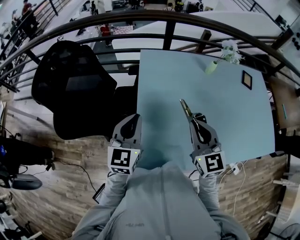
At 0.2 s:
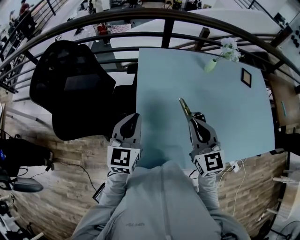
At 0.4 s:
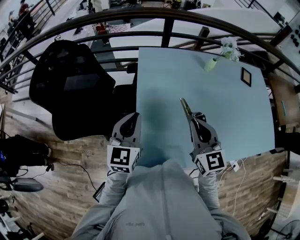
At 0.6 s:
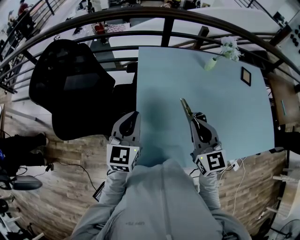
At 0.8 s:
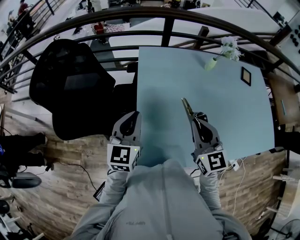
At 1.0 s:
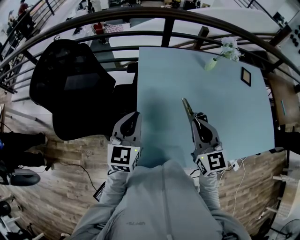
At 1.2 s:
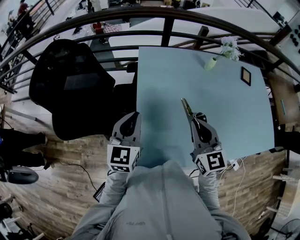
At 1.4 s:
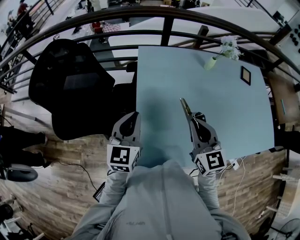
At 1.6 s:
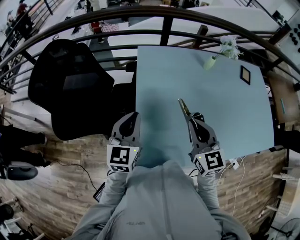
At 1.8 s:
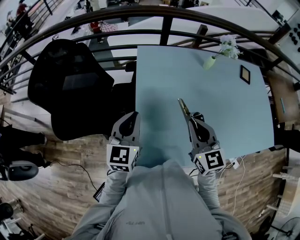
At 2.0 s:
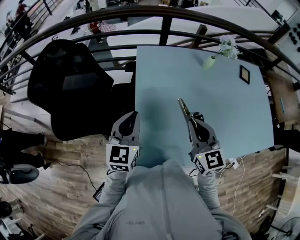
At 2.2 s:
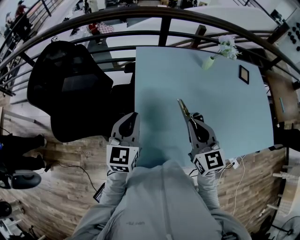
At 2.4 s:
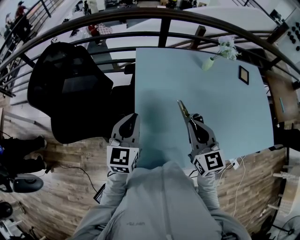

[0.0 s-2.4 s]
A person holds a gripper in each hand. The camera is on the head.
0.0 to 1.2 s: Neither gripper changes place.
1.2 to 2.4 s: Both grippers stay put.

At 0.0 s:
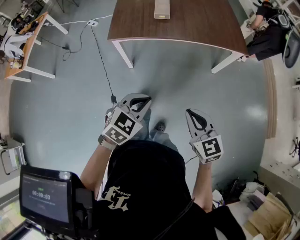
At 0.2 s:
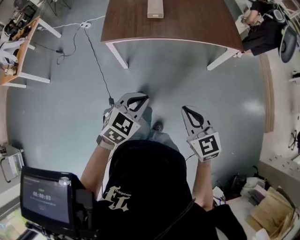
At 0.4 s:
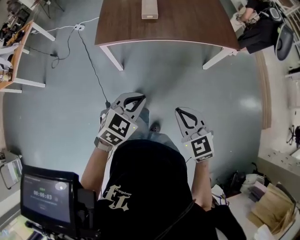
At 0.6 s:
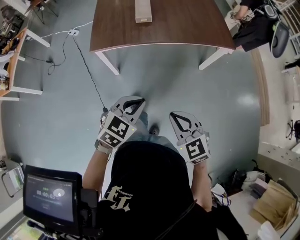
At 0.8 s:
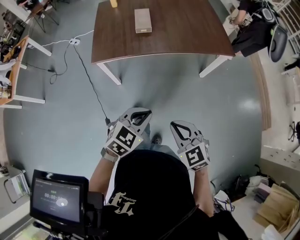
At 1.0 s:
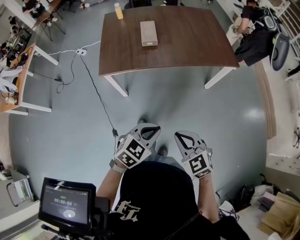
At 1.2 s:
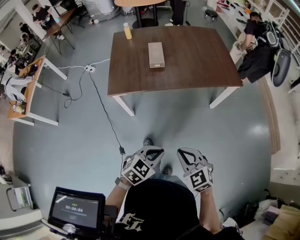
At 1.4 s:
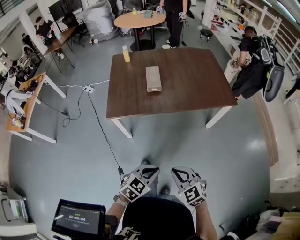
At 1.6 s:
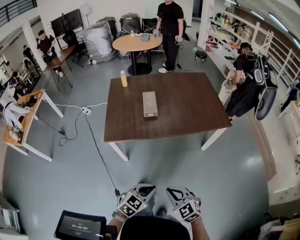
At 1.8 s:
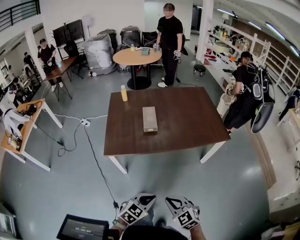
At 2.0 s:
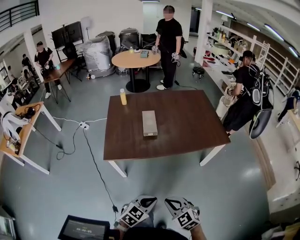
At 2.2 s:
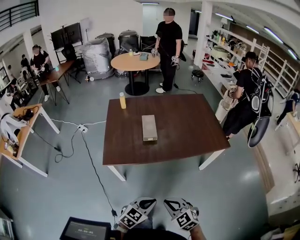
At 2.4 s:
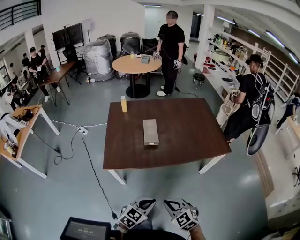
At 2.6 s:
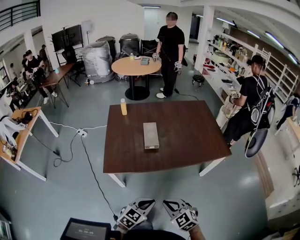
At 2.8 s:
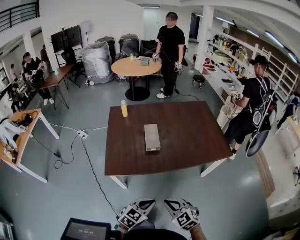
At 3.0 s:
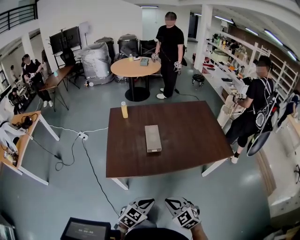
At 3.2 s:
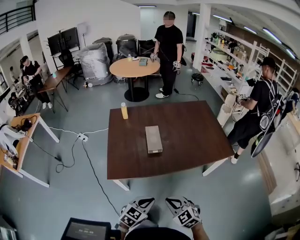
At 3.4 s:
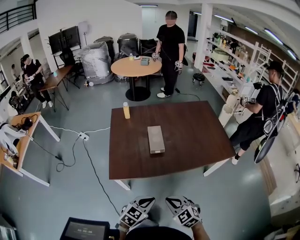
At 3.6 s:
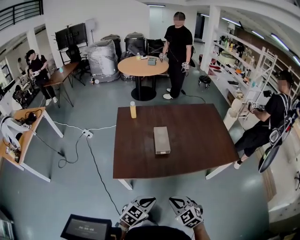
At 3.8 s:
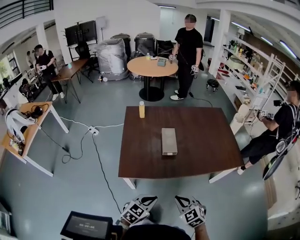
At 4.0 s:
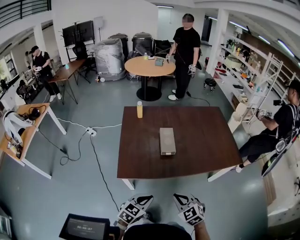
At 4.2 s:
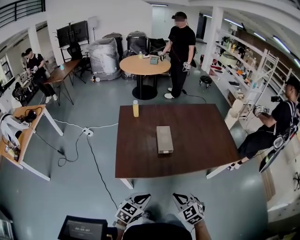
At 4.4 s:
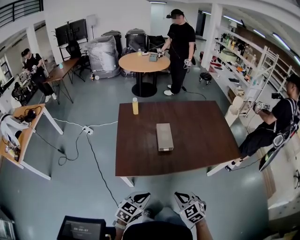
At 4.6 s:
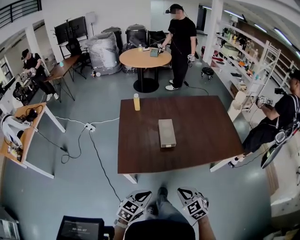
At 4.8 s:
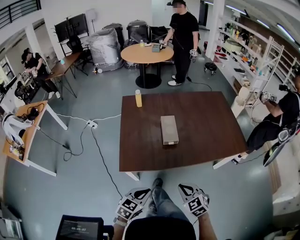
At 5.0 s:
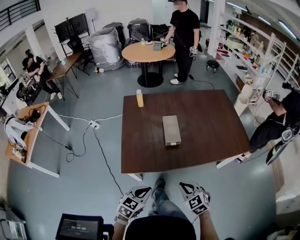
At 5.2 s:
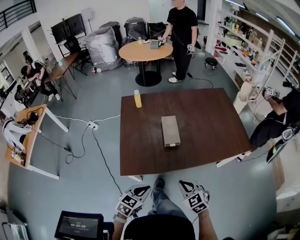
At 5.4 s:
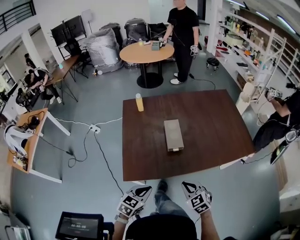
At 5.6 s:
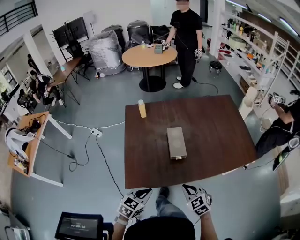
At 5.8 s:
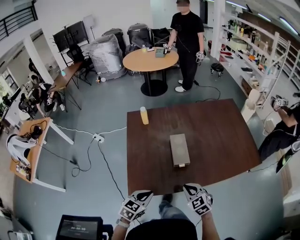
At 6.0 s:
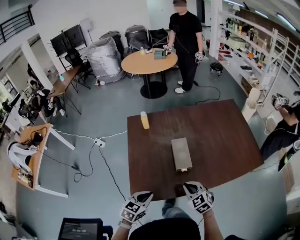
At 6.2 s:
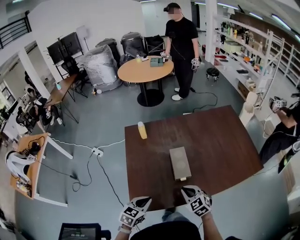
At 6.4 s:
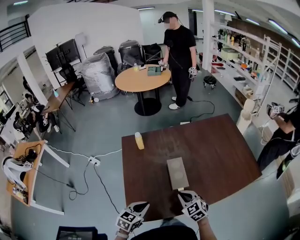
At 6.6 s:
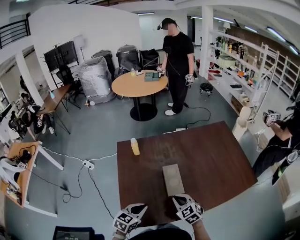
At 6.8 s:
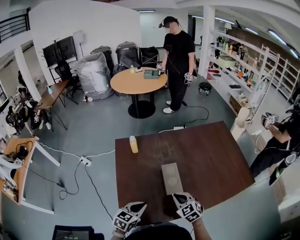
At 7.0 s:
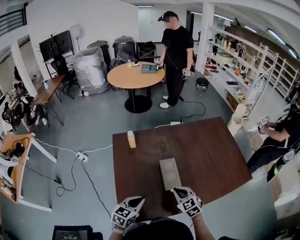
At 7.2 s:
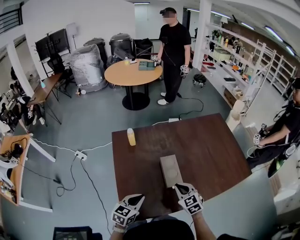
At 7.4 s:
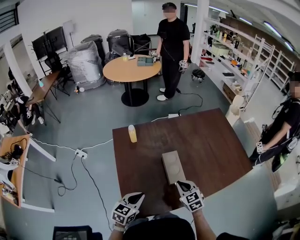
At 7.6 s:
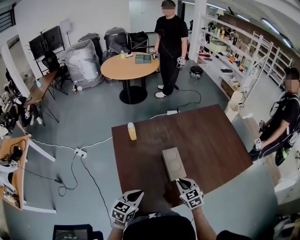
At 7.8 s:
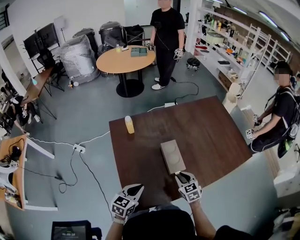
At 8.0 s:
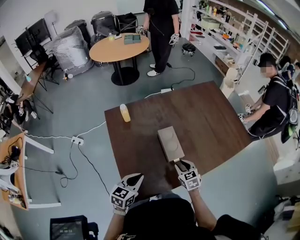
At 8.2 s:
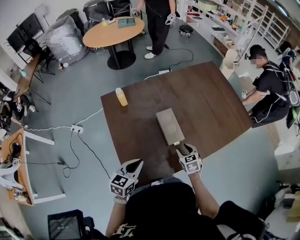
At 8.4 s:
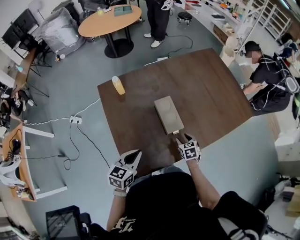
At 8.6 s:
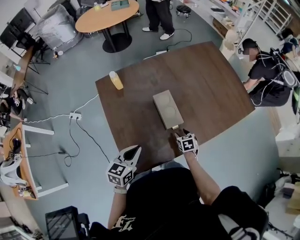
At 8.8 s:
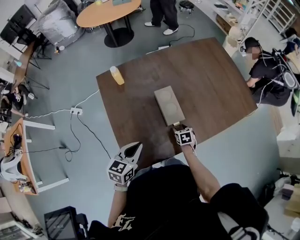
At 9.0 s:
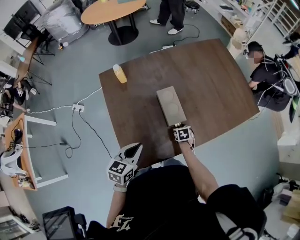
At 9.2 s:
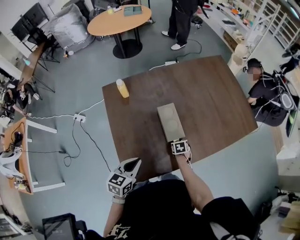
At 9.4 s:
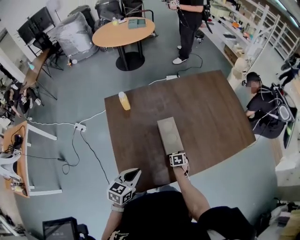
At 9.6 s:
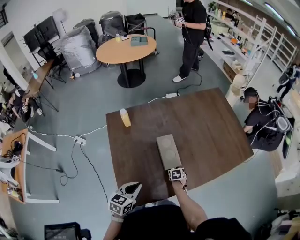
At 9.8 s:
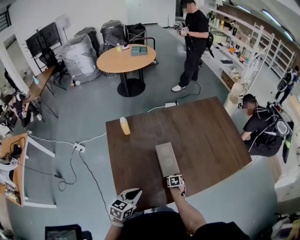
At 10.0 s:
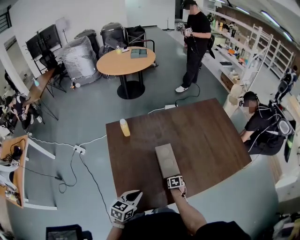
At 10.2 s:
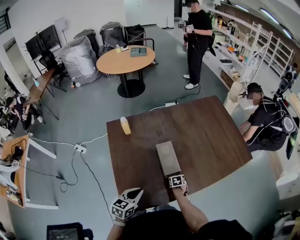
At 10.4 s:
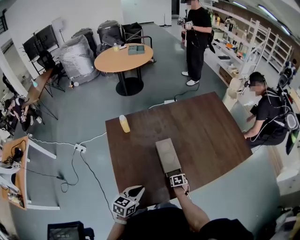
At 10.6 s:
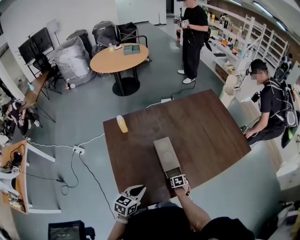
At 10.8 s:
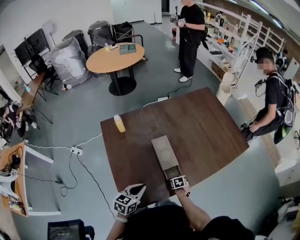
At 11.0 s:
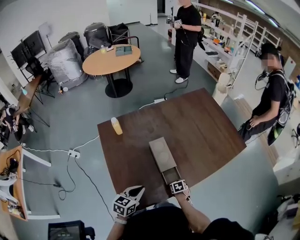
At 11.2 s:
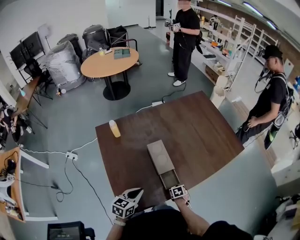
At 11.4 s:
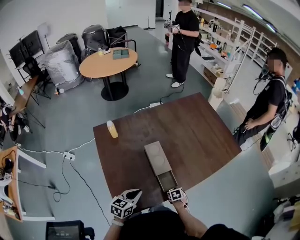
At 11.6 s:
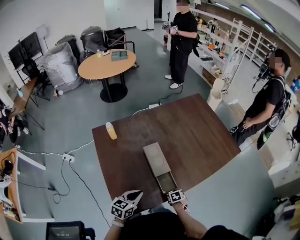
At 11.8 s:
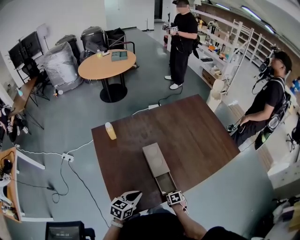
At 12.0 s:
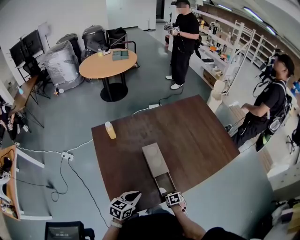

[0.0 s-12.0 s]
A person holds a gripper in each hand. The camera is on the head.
0.0 to 1.6 s: The right gripper travels forward and to the left by some 15 cm. Meanwhile the left gripper moves forward, roughly 10 cm.
1.6 to 3.0 s: Both grippers travel together forward and to the left, roughly 20 cm.
3.0 to 4.4 s: The left gripper goes about 10 cm to the left. The right gripper shifts by some 5 cm.
4.4 to 6.0 s: The left gripper goes about 25 cm forward and to the left; the right gripper travels forward by approximately 25 cm.
6.0 to 7.6 s: The left gripper shifts about 15 cm forward and to the left; the right gripper heads forward, covering some 10 cm.
7.6 to 9.0 s: The right gripper goes about 25 cm downward, rotates some 40 degrees, and opens its fingers.
9.0 to 10.4 s: There are only small adjustments of the grippers.
10.4 to 12.0 s: The right gripper heads backward, covering approximately 10 cm.

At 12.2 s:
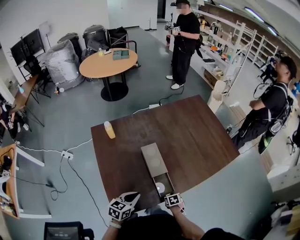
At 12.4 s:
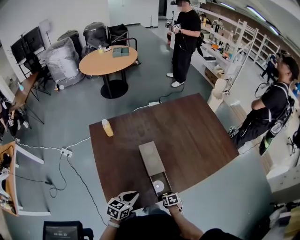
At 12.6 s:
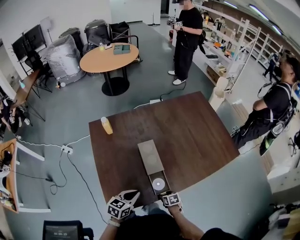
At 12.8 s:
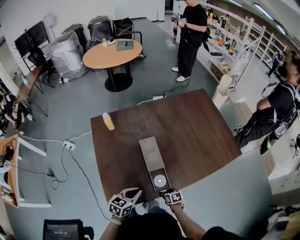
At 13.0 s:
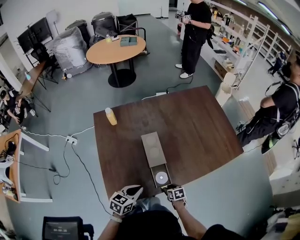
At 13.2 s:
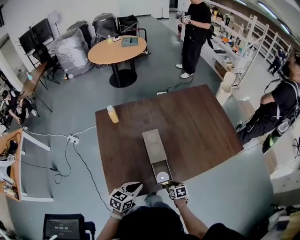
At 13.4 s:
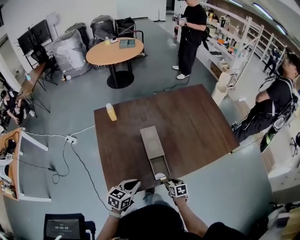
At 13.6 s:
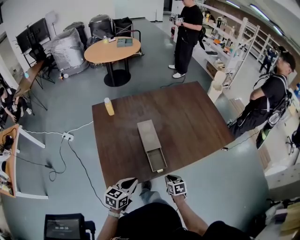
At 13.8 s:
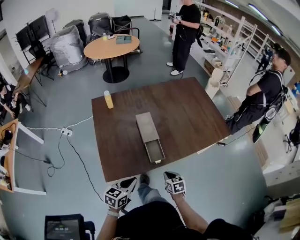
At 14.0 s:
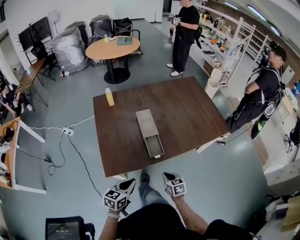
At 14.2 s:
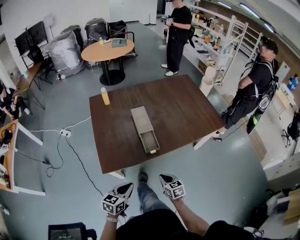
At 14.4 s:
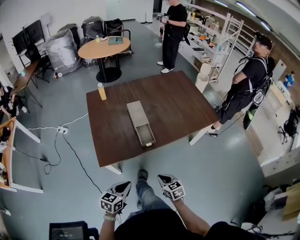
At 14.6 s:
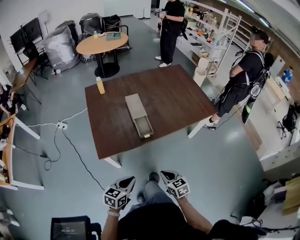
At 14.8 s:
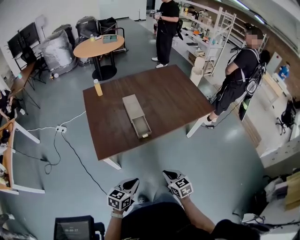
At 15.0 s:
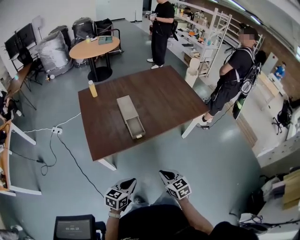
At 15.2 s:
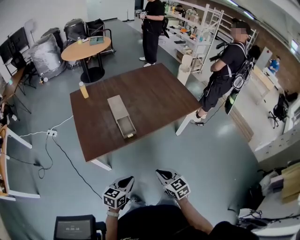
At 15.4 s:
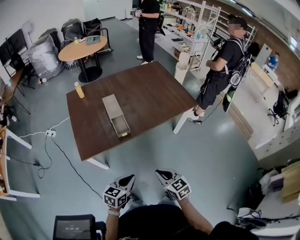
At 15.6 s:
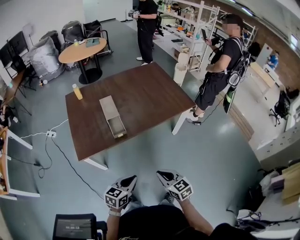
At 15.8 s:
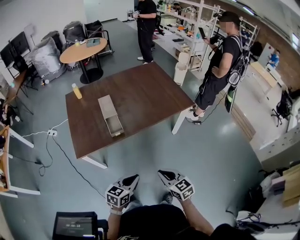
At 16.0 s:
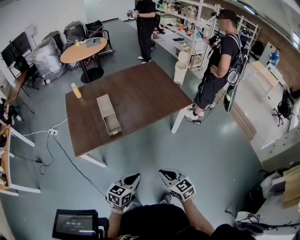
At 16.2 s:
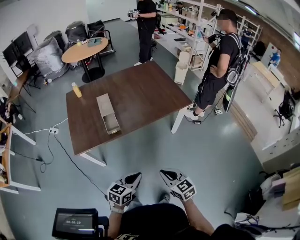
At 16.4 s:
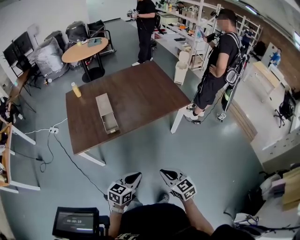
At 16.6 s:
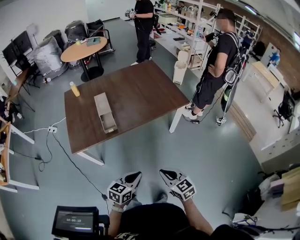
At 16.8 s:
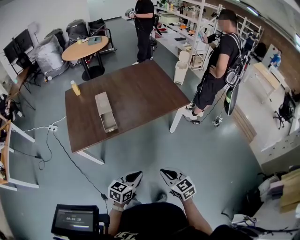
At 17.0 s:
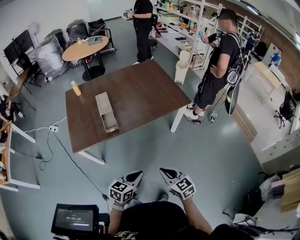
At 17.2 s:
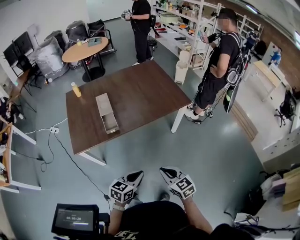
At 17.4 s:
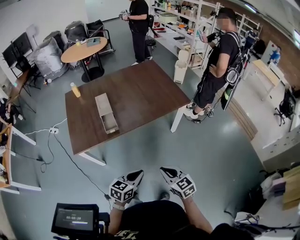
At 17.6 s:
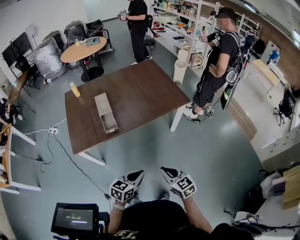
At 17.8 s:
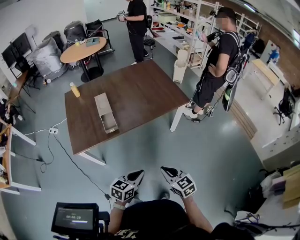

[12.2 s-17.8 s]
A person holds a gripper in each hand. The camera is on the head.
12.2 to 13.6 s: The right gripper travels upward and backward by about 15 cm, and closes up. The left gripper goes approximately 10 cm backward.
13.6 to 15.0 s: The left gripper shifts approximately 30 cm backward and to the right. Meanwhile the right gripper travels backward and upward by roughly 30 cm, and rotates about 20 degrees.
15.0 to 16.4 s: The two grippers go about 25 cm to the right.
16.4 to 17.8 s: There are only small adjustments of the grippers.

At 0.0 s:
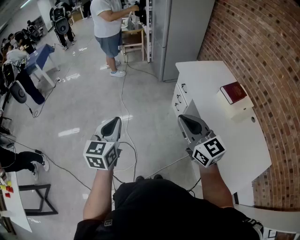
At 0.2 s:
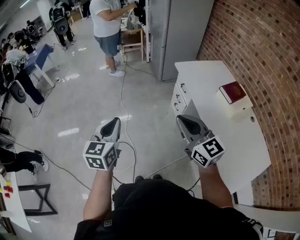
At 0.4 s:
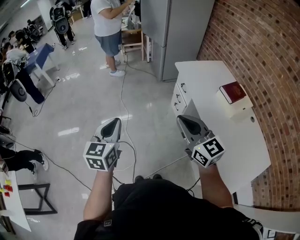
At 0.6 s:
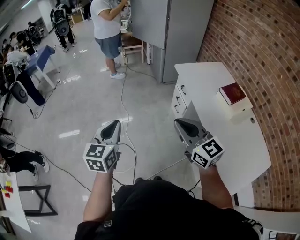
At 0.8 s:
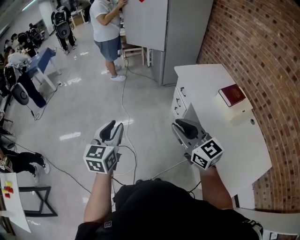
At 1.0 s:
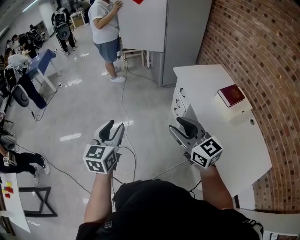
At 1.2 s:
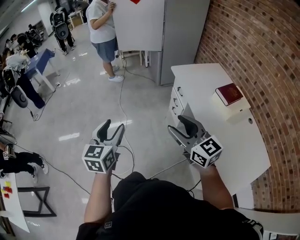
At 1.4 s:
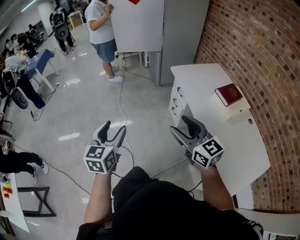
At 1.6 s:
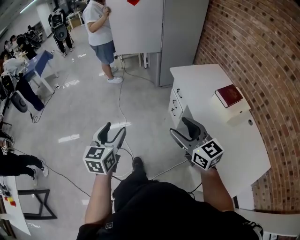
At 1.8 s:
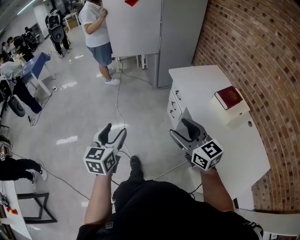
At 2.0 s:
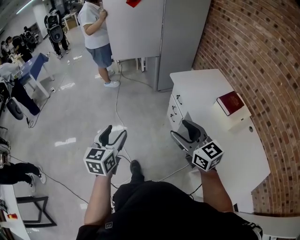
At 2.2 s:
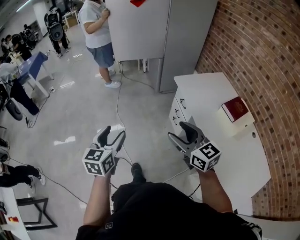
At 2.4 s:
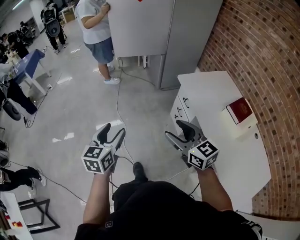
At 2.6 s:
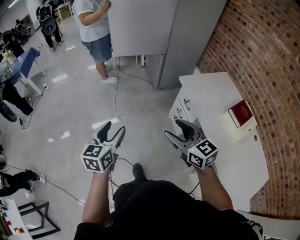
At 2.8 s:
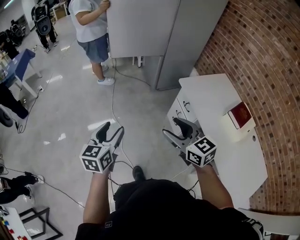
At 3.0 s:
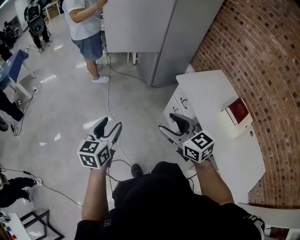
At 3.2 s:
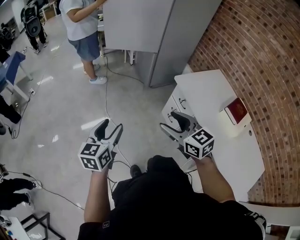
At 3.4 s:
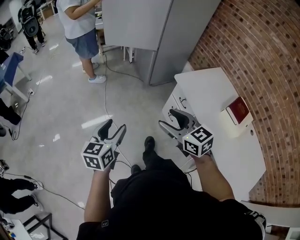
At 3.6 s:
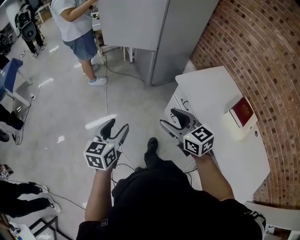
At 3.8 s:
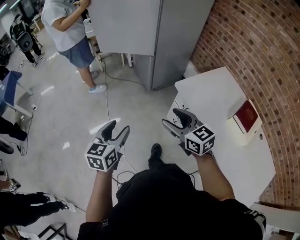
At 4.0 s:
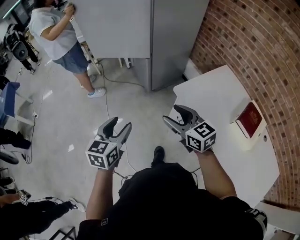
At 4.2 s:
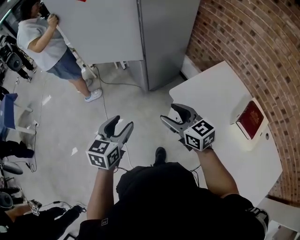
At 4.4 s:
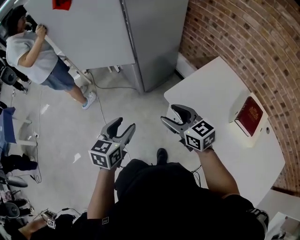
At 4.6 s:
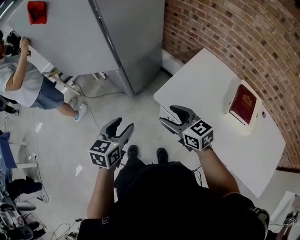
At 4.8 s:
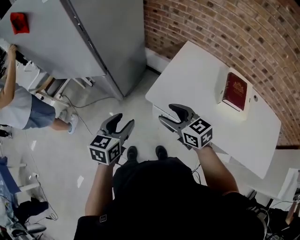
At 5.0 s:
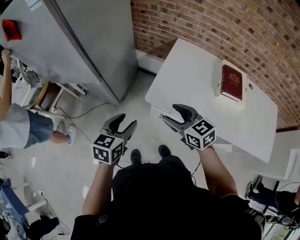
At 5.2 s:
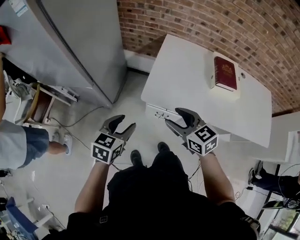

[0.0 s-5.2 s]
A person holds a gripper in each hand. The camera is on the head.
0.0 to 1.8 s: The left gripper ends up approximately 5 cm from where it was, and opens up. The right gripper ends up approximately 5 cm from where it was, and opens up.
1.8 to 3.4 s: The left gripper moves forward, approximately 30 cm. The right gripper heads forward and to the left, covering approximately 30 cm.
3.4 to 5.2 s: The right gripper moves about 35 cm, and changes its angle by approximately 50 degrees. The left gripper shifts by approximately 50 cm, and rotates roughly 70 degrees.
